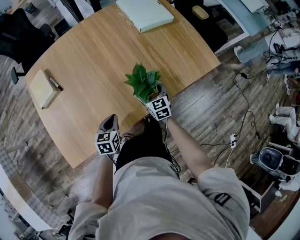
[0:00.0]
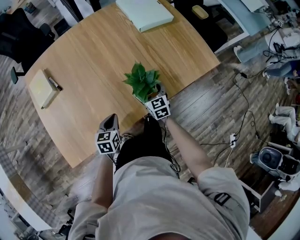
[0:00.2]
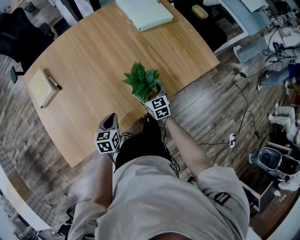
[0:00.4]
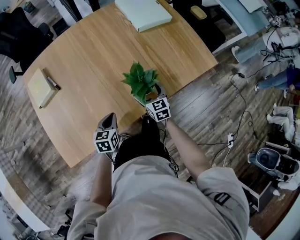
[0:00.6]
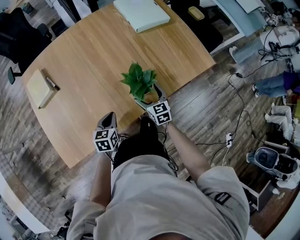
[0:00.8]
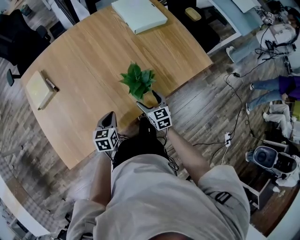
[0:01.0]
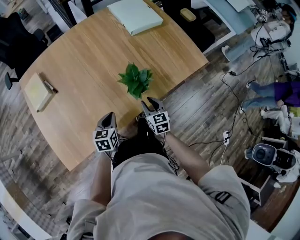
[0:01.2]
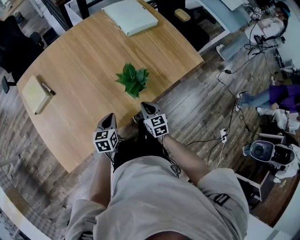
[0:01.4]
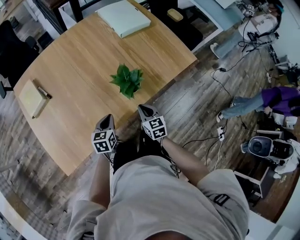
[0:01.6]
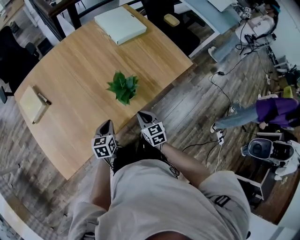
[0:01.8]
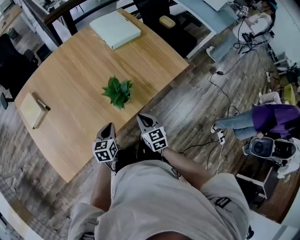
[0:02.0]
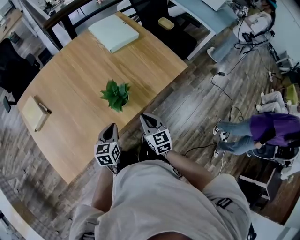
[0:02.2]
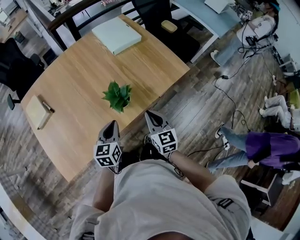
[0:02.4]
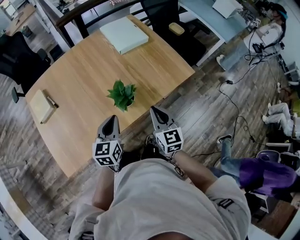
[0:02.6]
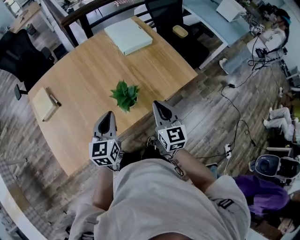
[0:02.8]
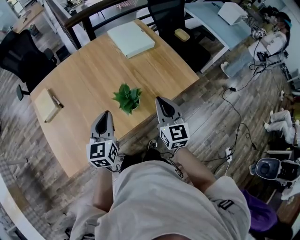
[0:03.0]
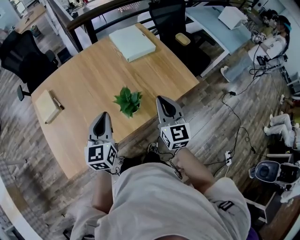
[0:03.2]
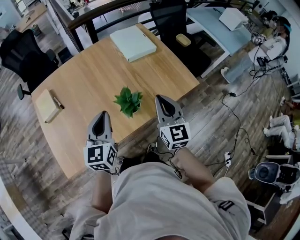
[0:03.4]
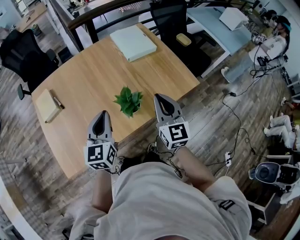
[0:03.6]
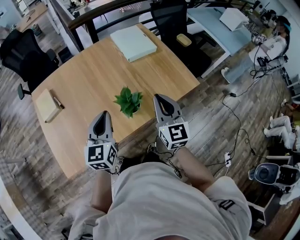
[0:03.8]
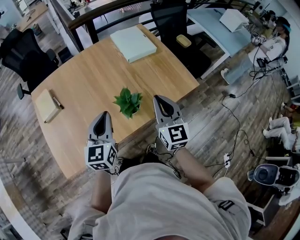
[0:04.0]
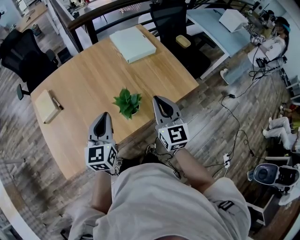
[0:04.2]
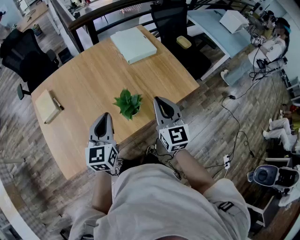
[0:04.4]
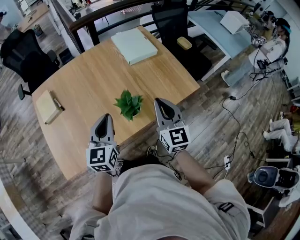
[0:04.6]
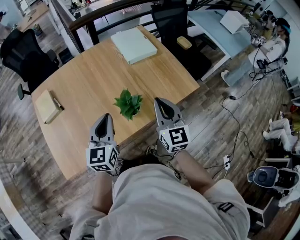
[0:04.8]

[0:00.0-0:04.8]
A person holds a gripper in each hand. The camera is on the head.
0:00.0 to 0:01.6: The right gripper heads backward, covering roughly 10 cm, and closes its fingers.
0:01.6 to 0:03.2: The grippers both shift upward by about 25 cm. The left gripper turns by some 30 degrees, while the right gripper rotates some 30 degrees.
0:03.2 to 0:04.8: There are only small adjustments of the grippers.

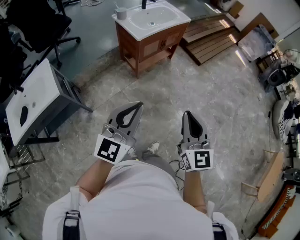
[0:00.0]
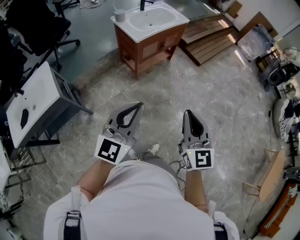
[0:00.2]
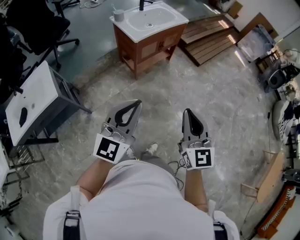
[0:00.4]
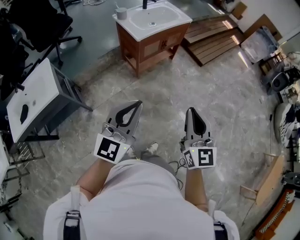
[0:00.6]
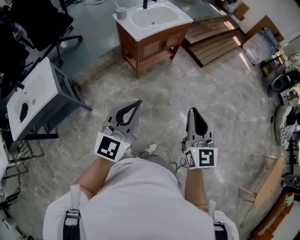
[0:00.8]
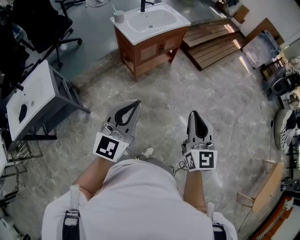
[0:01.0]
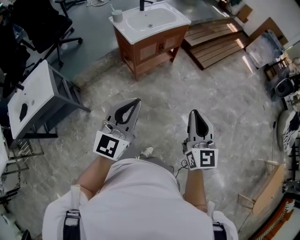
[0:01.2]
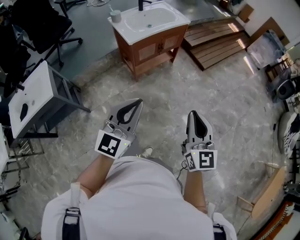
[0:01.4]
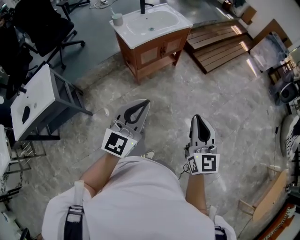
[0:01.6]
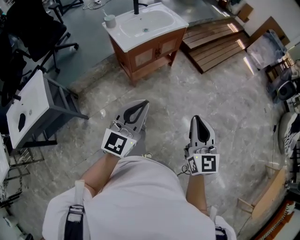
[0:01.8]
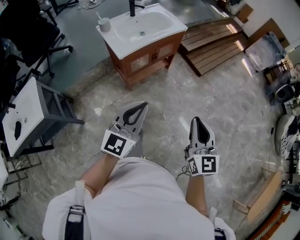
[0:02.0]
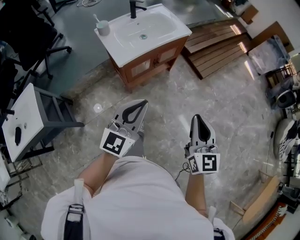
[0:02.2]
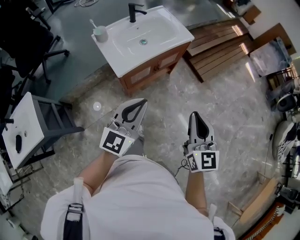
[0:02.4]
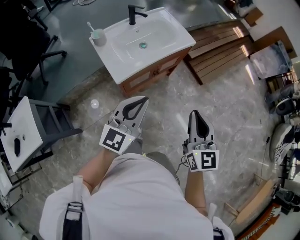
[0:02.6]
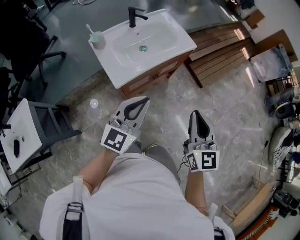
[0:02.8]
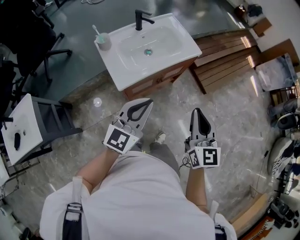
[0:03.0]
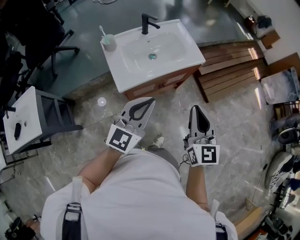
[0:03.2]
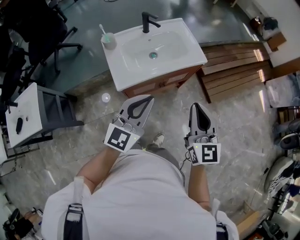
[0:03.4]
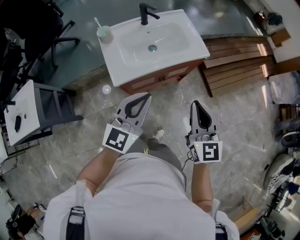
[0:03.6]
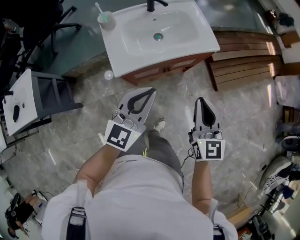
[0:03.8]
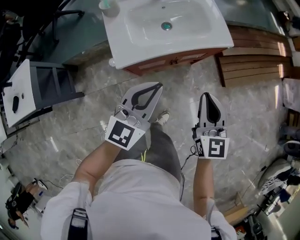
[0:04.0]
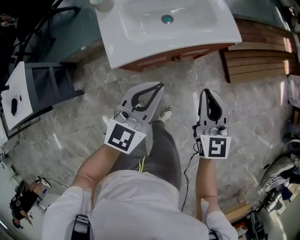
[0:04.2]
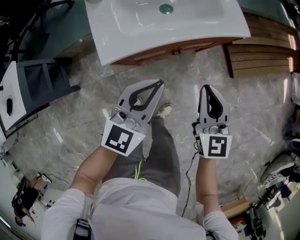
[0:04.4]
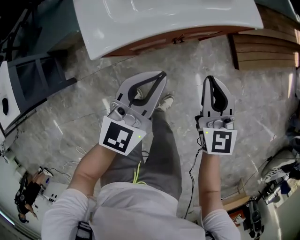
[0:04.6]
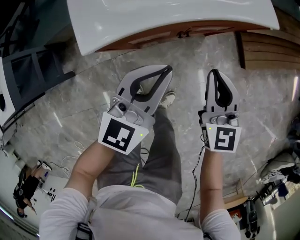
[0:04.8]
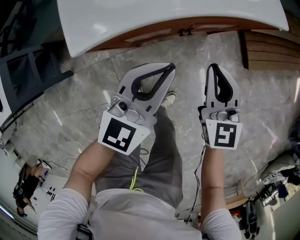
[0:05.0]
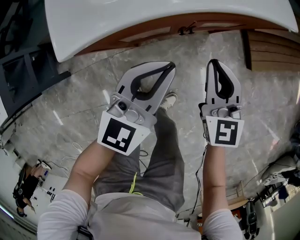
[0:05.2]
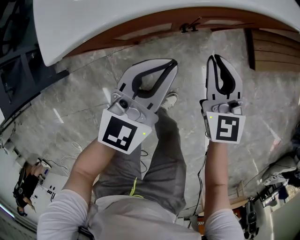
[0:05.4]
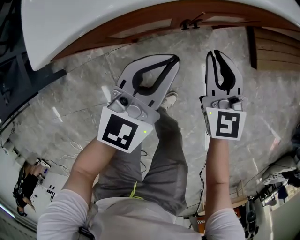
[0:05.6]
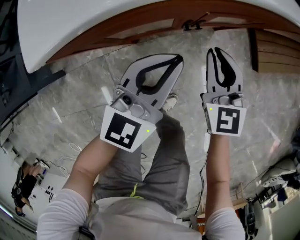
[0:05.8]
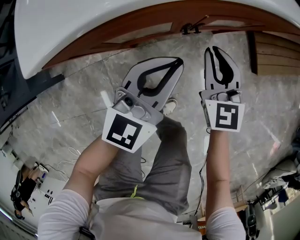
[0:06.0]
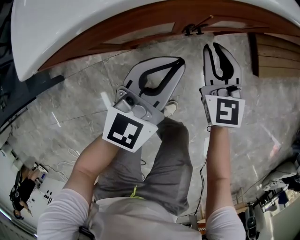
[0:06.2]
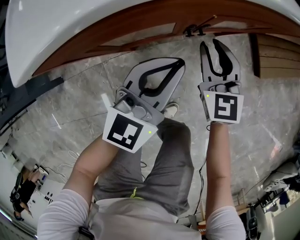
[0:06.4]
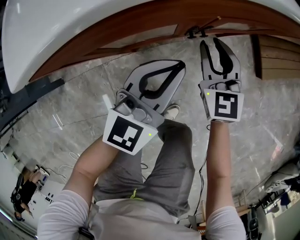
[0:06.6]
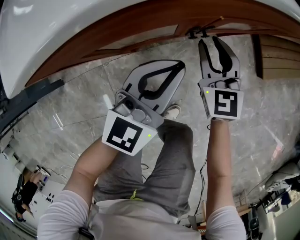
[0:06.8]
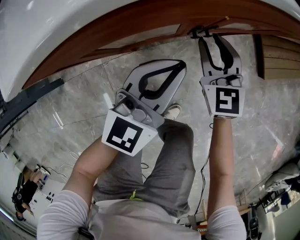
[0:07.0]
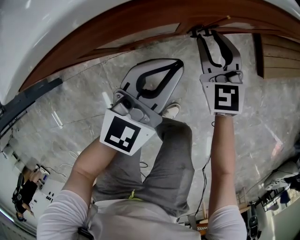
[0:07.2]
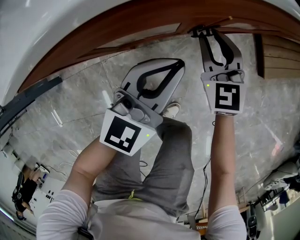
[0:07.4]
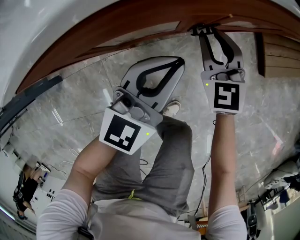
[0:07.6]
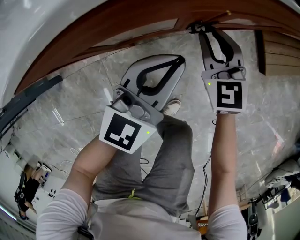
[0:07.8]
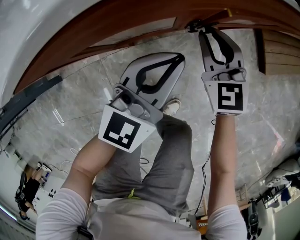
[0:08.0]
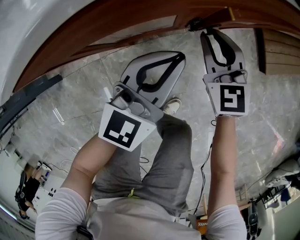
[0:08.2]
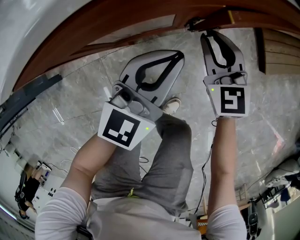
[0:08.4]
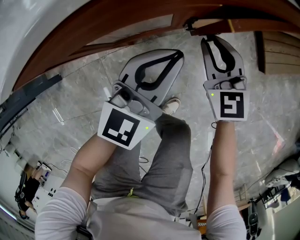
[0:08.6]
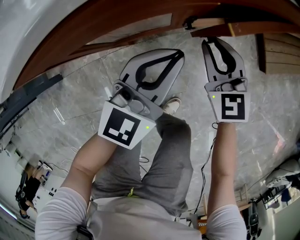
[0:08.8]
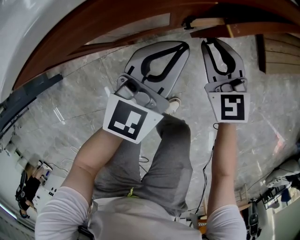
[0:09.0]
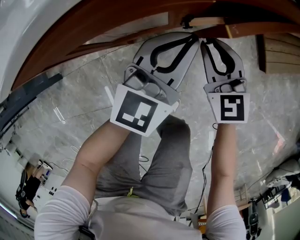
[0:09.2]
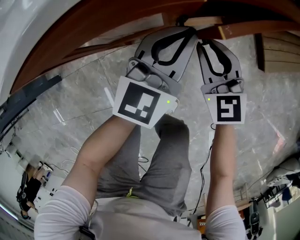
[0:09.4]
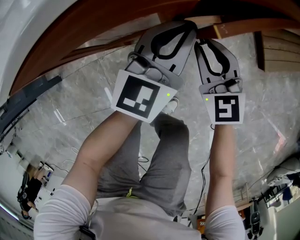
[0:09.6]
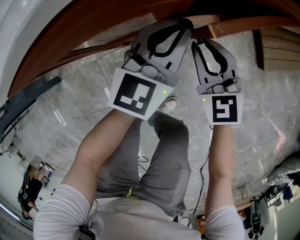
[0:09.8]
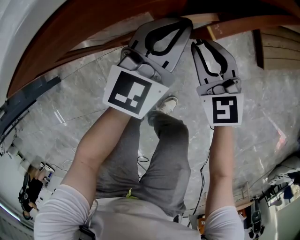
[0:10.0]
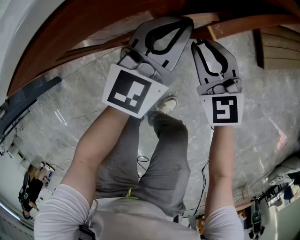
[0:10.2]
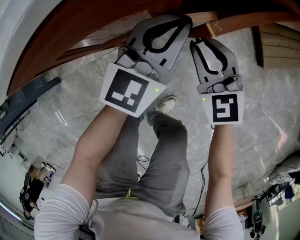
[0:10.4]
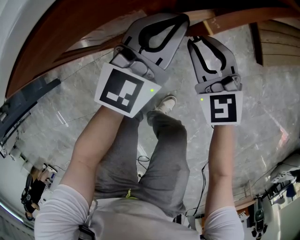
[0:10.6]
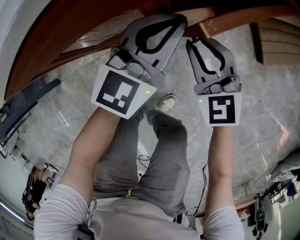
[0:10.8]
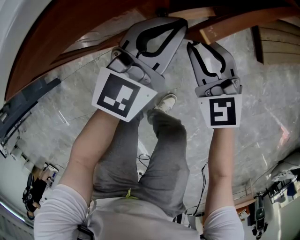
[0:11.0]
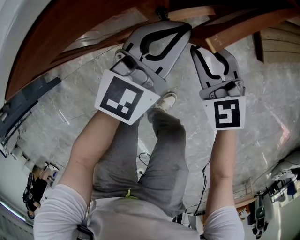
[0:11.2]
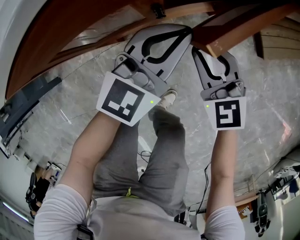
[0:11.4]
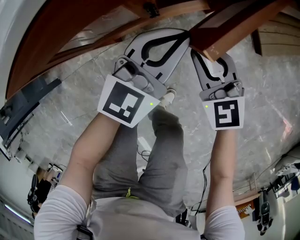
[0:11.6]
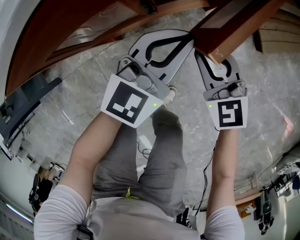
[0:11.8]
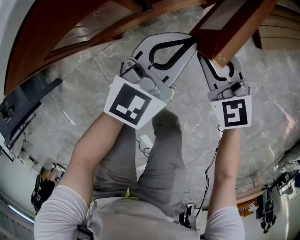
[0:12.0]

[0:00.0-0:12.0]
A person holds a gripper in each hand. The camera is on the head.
0:00.0 to 0:01.6: The grippers both shift to the right and forward by about 20 cm.
0:01.6 to 0:03.0: Both grippers are carried forward, about 50 cm.
0:03.0 to 0:04.4: The grippers both shift downward and forward by some 25 cm.
0:04.4 to 0:06.0: Both grippers move downward, approximately 30 cm.
0:06.0 to 0:07.6: The two grippers go some 10 cm downward.
0:07.6 to 0:09.0: There are only small adjustments of the grippers.
0:09.0 to 0:10.4: The left gripper ends up roughly 5 cm from where it was.
0:10.4 to 0:12.0: The two grippers go roughly 10 cm to the right and backward.

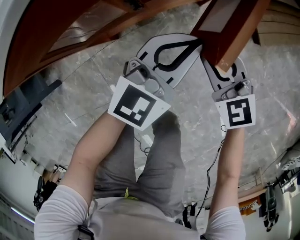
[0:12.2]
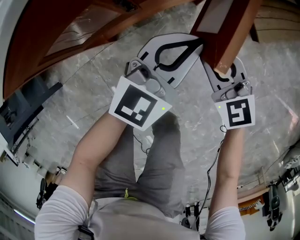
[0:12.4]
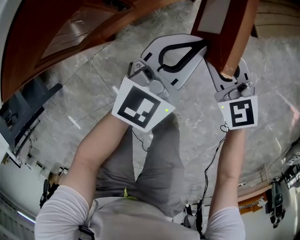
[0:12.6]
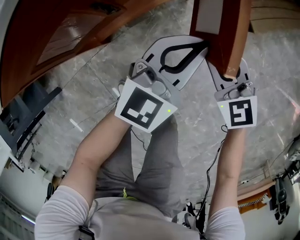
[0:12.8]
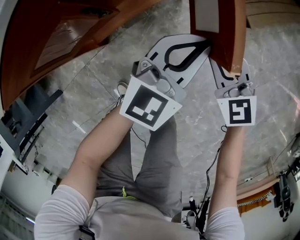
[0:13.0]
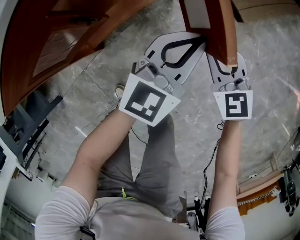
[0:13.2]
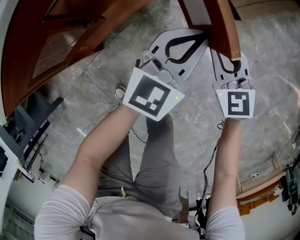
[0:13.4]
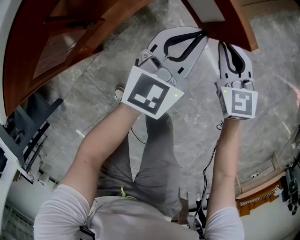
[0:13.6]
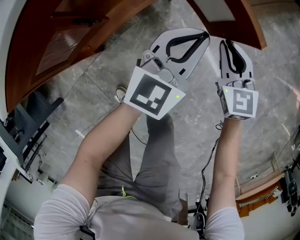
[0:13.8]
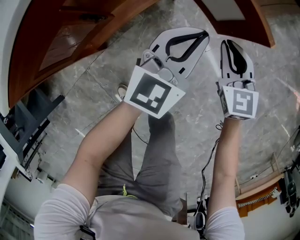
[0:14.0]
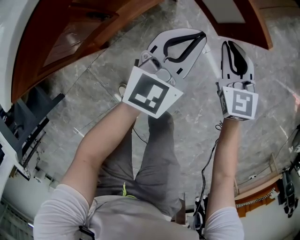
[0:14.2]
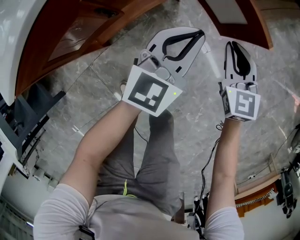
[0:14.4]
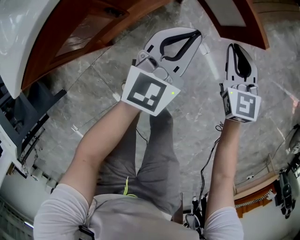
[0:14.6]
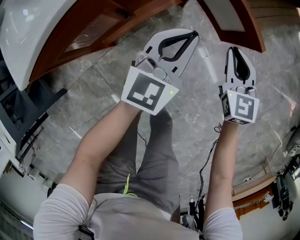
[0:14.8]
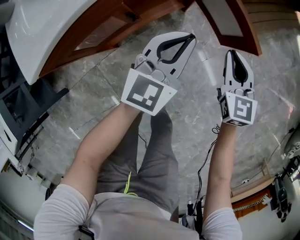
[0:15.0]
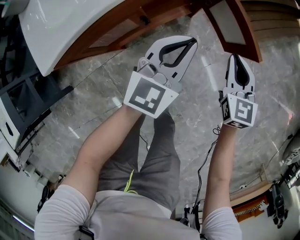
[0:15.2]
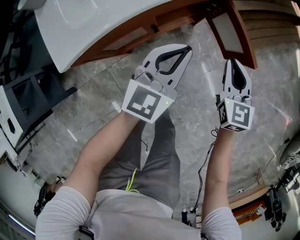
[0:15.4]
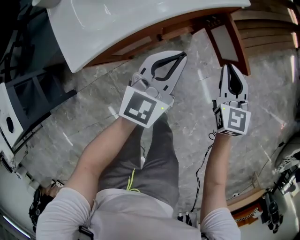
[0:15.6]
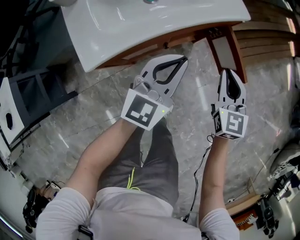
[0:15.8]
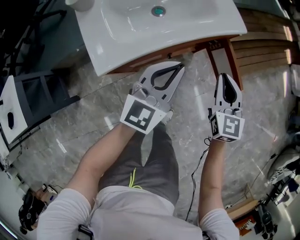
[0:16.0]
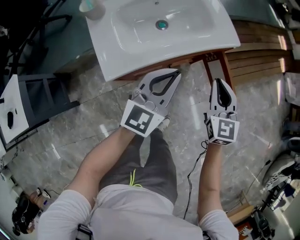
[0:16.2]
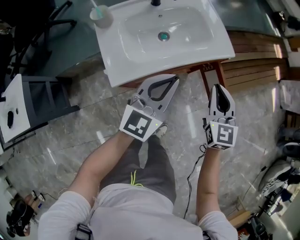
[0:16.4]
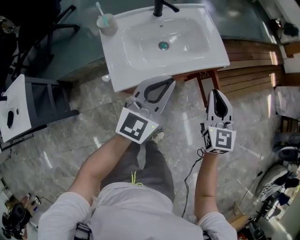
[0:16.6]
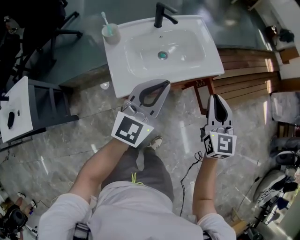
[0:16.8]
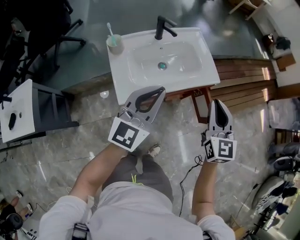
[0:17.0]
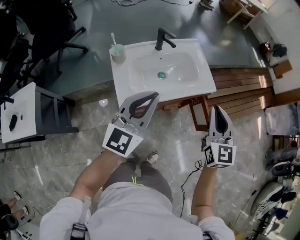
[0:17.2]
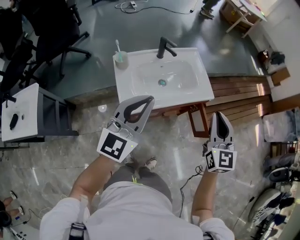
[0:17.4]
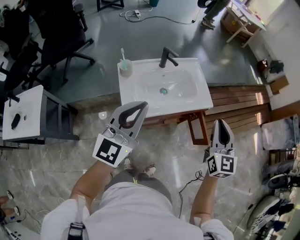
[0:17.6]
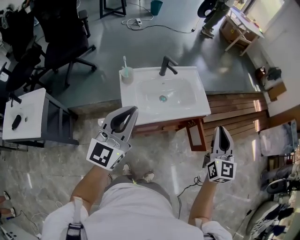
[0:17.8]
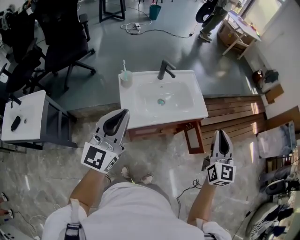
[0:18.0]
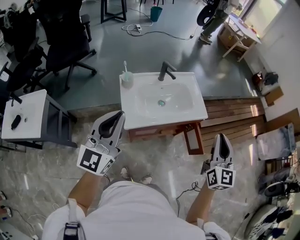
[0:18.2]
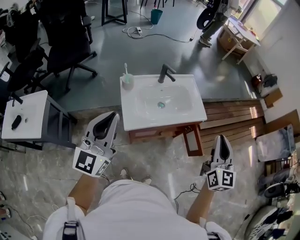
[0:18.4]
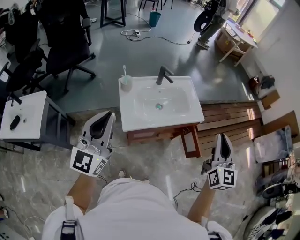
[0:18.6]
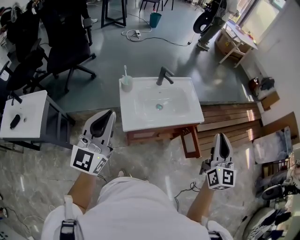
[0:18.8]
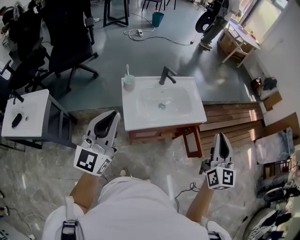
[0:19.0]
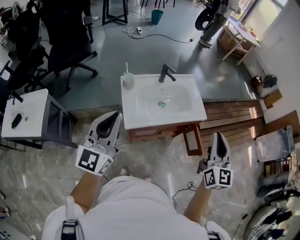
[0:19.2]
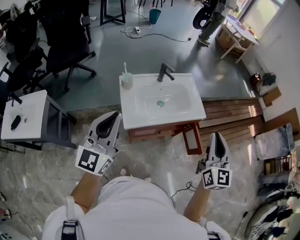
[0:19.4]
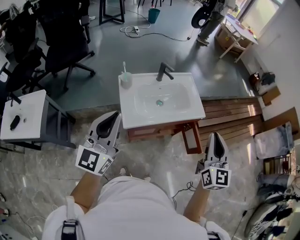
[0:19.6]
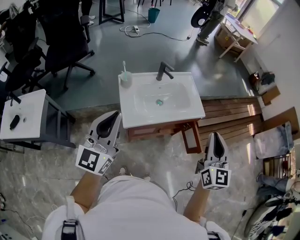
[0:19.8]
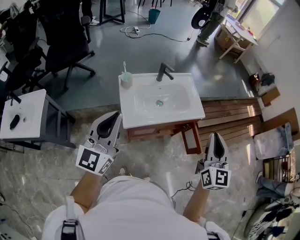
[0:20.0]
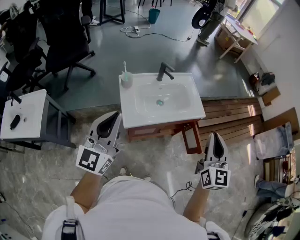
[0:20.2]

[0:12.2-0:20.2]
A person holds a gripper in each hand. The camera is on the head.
0:12.2 to 0:13.8: The two grippers go approximately 15 cm to the right. The right gripper turns by roughly 40 degrees.
0:13.8 to 0:15.4: The grippers both shift upward and to the left by roughly 25 cm.
0:15.4 to 0:17.0: The left gripper moves upward and to the left, some 40 cm, and rotates about 20 degrees. Meanwhile the right gripper is displaced upward by approximately 40 cm.
0:17.0 to 0:18.6: The left gripper heads upward, to the left and backward, covering roughly 30 cm, and rotates roughly 20 degrees. The right gripper goes about 20 cm upward and backward.
0:18.6 to 0:20.2: The grippers make only small movements.
